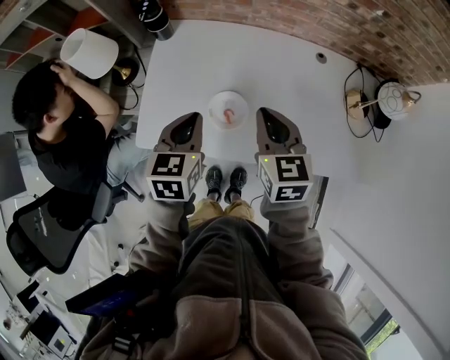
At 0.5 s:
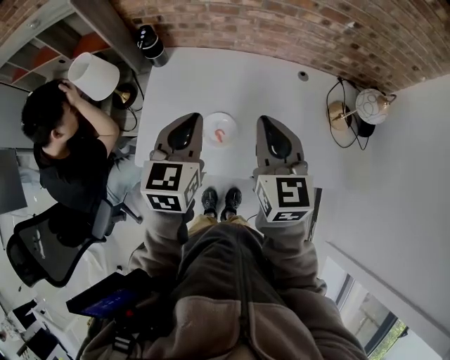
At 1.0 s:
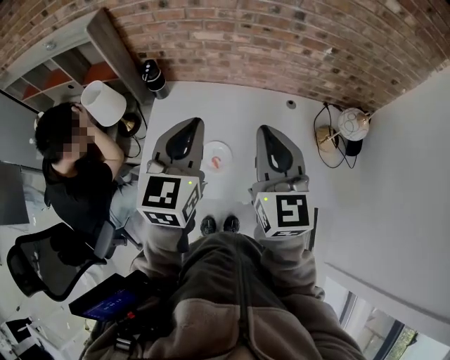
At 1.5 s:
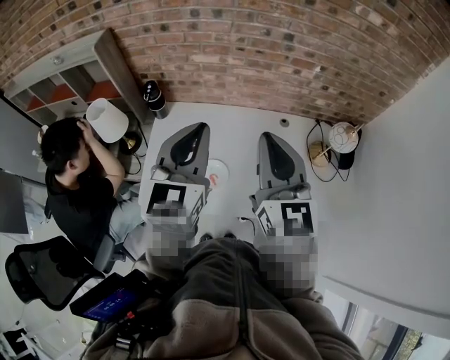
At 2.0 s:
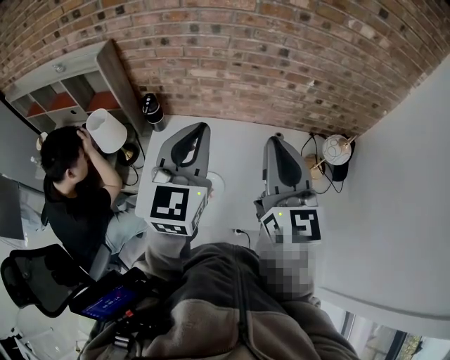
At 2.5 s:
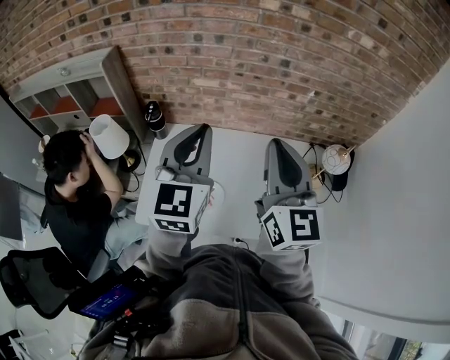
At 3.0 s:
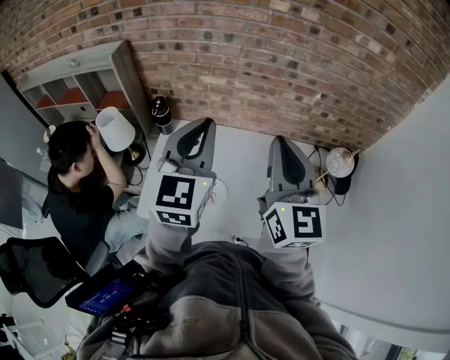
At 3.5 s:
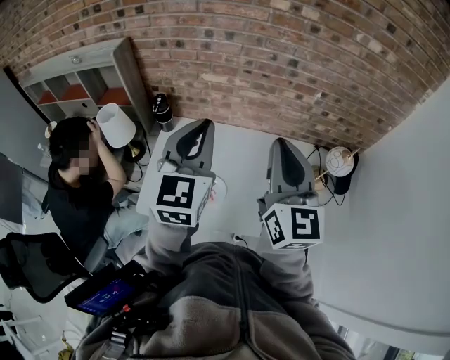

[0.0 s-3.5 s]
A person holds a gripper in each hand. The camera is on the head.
0.0 to 2.0 s: Both grippers move upward, about 30 cm. The right gripper angles its fingers upward, by about 40 degrees, while the left gripper angles its fingers upward, by some 40 degrees.
2.0 to 3.5 s: The grippers make only small movements.

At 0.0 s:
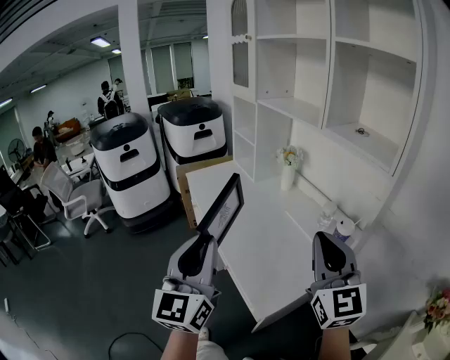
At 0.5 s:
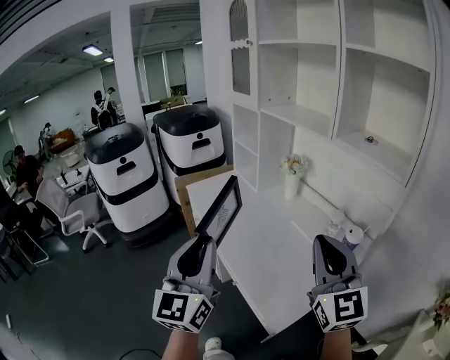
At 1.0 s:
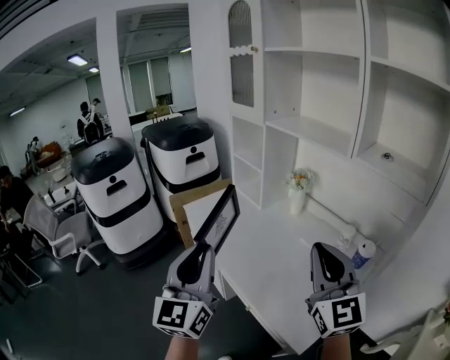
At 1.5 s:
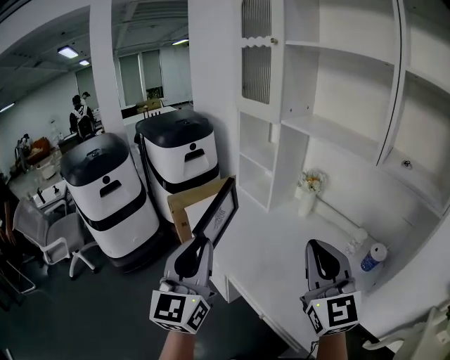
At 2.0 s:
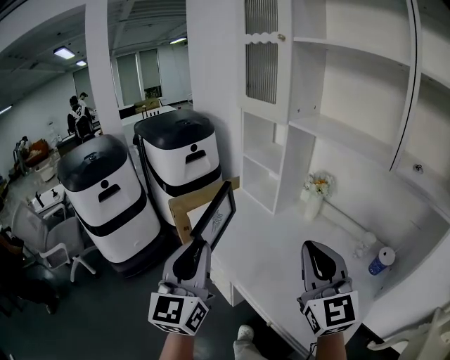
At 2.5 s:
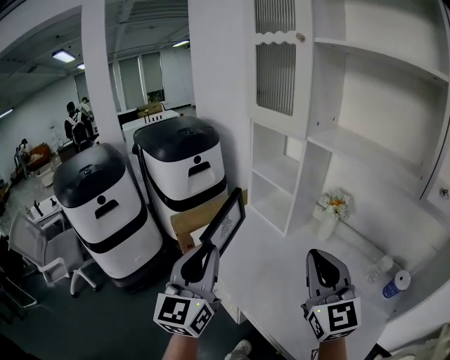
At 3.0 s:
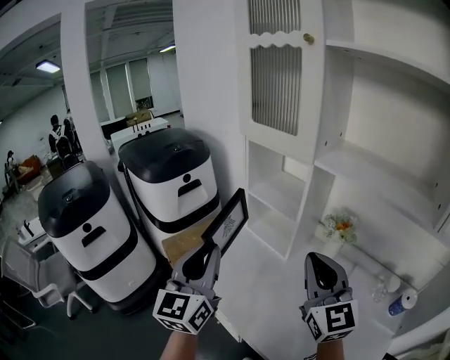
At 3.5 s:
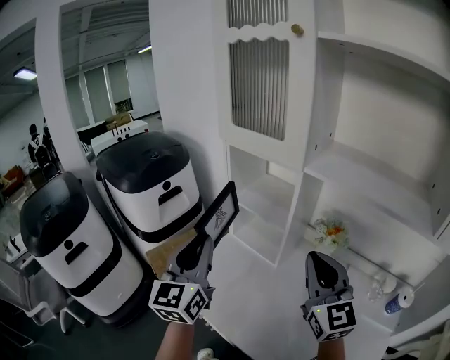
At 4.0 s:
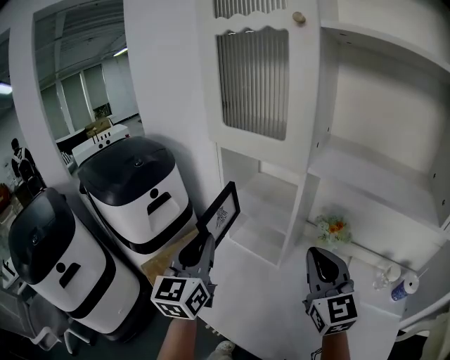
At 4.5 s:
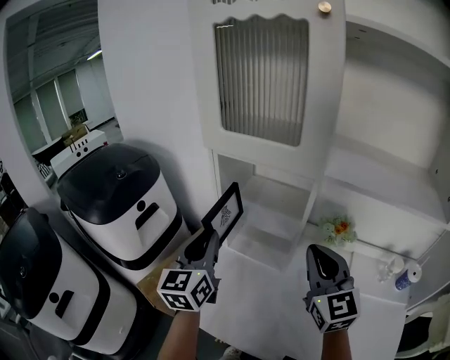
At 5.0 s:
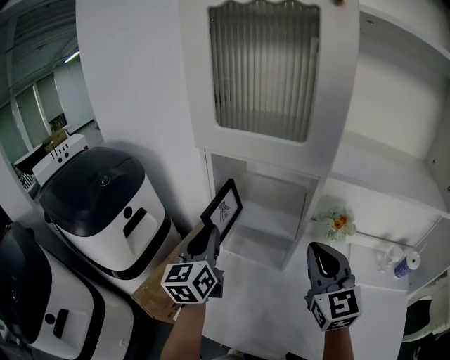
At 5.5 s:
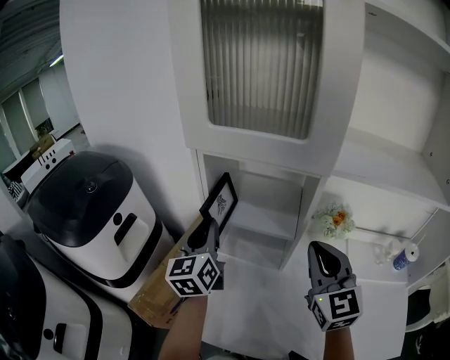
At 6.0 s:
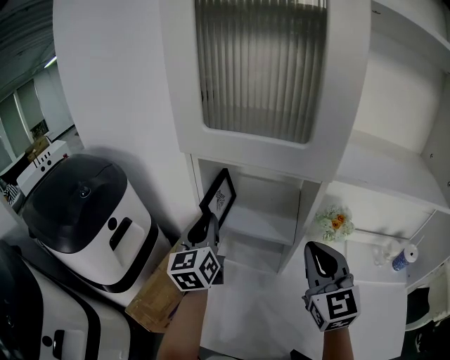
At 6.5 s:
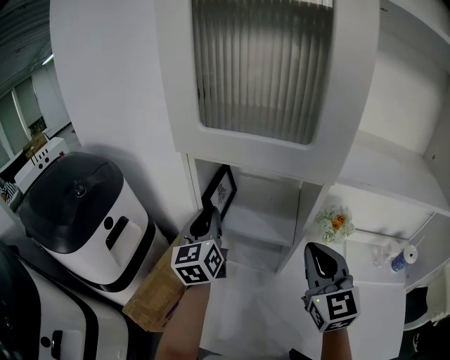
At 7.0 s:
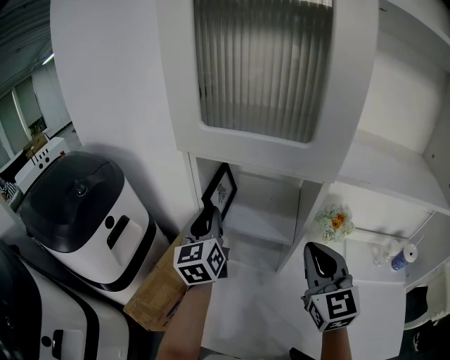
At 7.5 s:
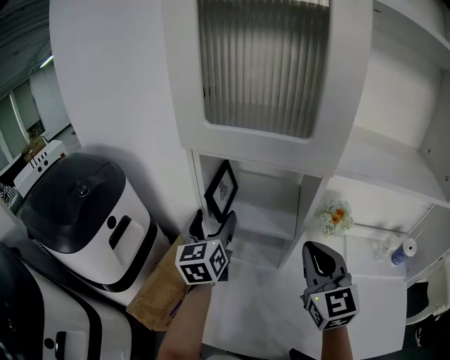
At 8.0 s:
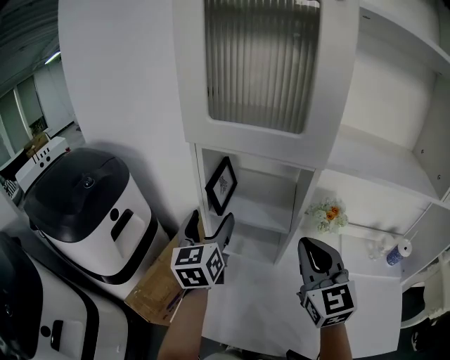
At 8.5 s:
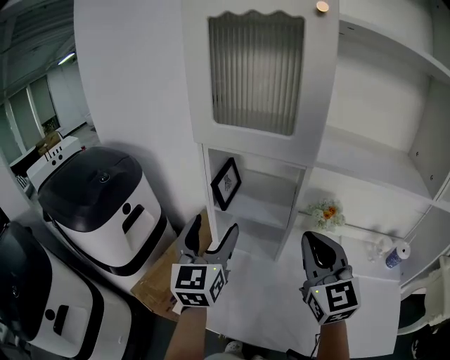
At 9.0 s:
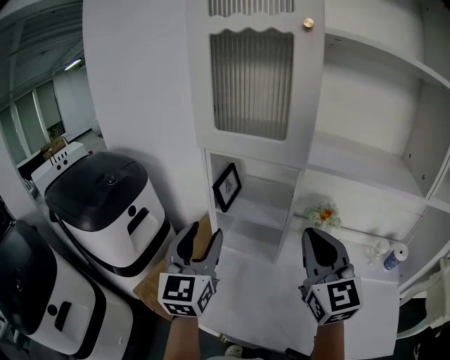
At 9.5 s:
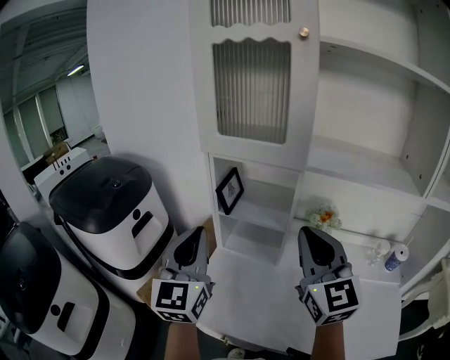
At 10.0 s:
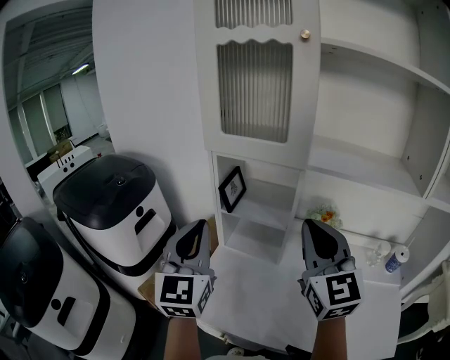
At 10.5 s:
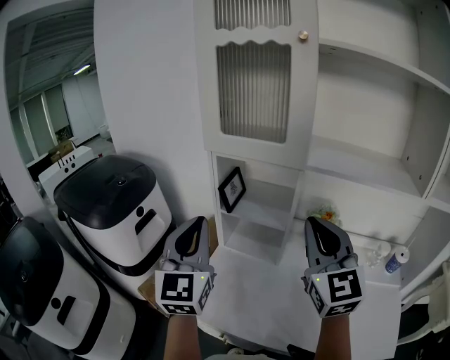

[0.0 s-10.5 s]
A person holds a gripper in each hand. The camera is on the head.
0.0 to 2.0 s: The right gripper shifts some 35 cm to the left and forward. The left gripper moves forward and to the left, roughly 35 cm.
2.0 to 4.0 s: The two grippers go approximately 35 cm forward. The left gripper swivels approximately 20 degrees.
4.0 to 6.5 s: The right gripper heads forward, covering approximately 10 cm. The left gripper travels forward by about 25 cm.
6.5 to 8.5 s: The left gripper shifts approximately 20 cm backward and upward, and opens up. Meanwhile the right gripper moves backward and upward, approximately 10 cm.
8.5 to 10.5 s: The right gripper is displaced upward by some 5 cm. Meanwhile the left gripper is displaced backward and upward by roughly 10 cm, and closes its fingers.

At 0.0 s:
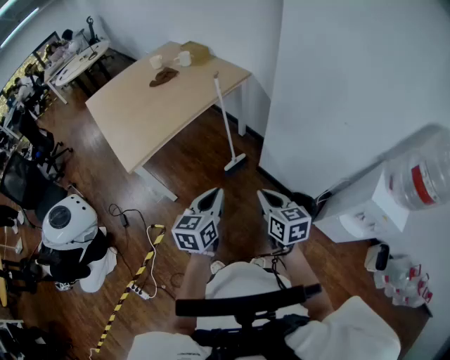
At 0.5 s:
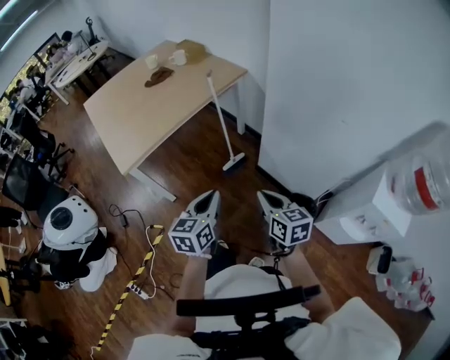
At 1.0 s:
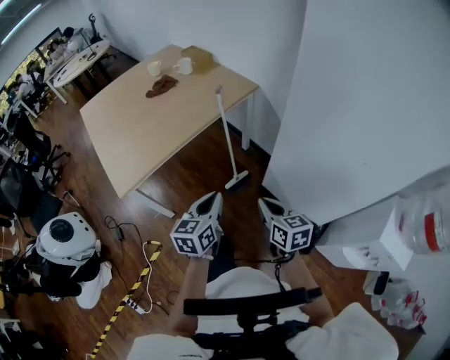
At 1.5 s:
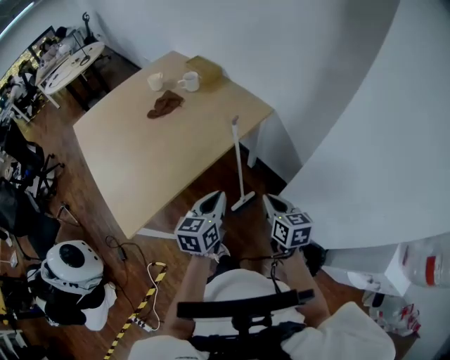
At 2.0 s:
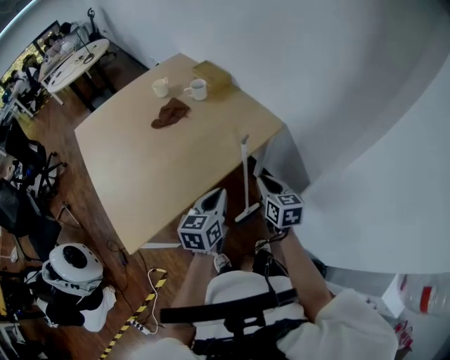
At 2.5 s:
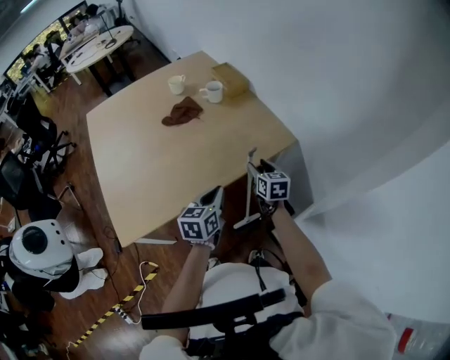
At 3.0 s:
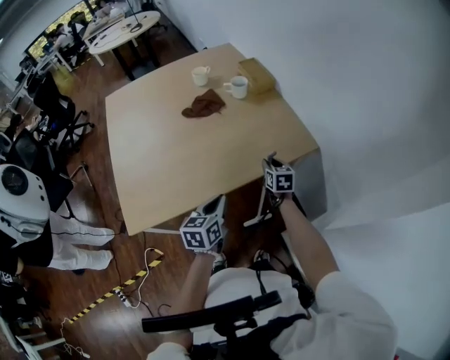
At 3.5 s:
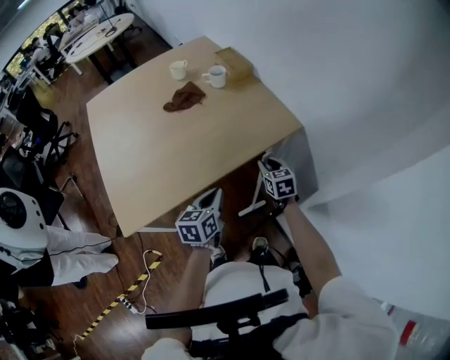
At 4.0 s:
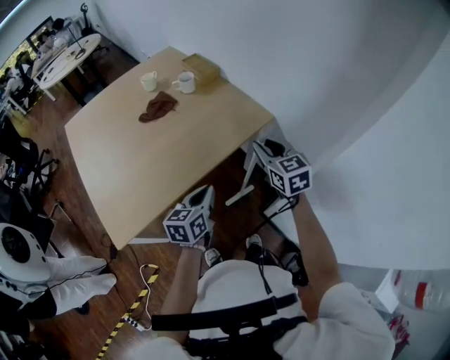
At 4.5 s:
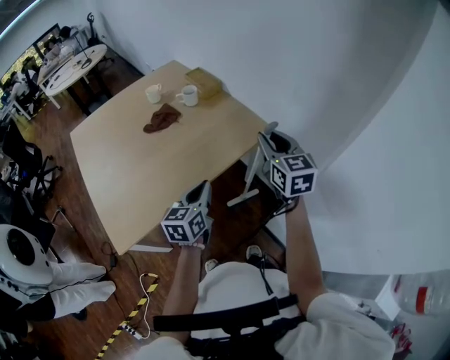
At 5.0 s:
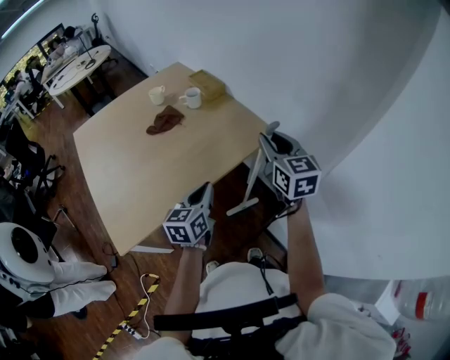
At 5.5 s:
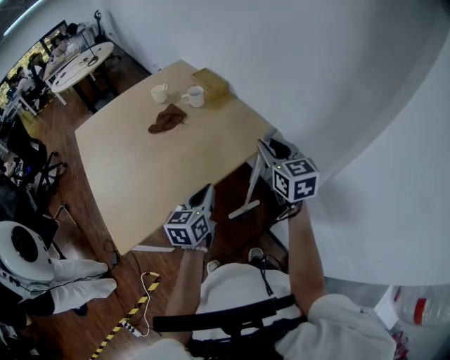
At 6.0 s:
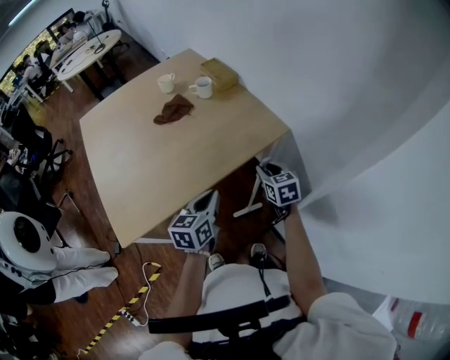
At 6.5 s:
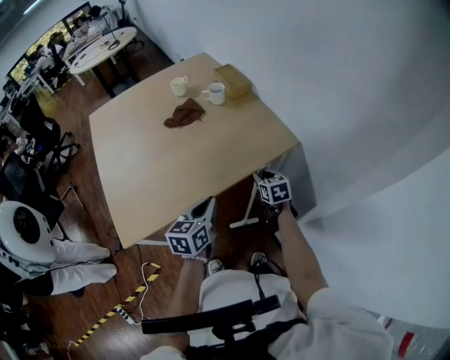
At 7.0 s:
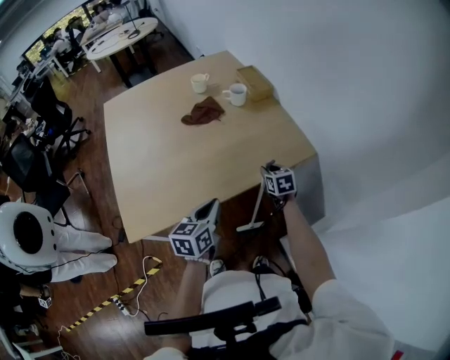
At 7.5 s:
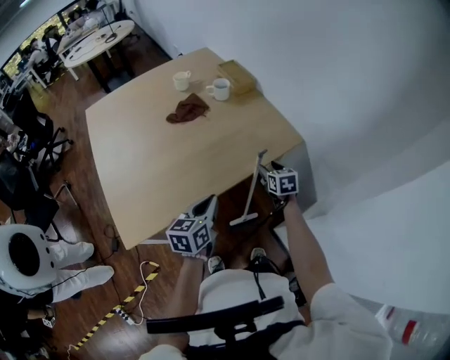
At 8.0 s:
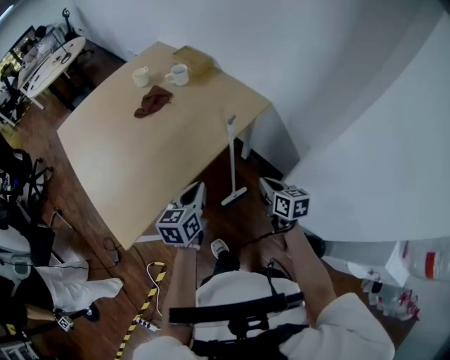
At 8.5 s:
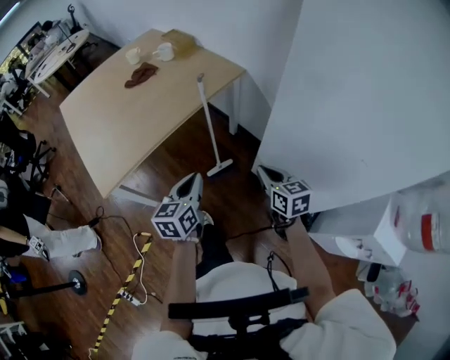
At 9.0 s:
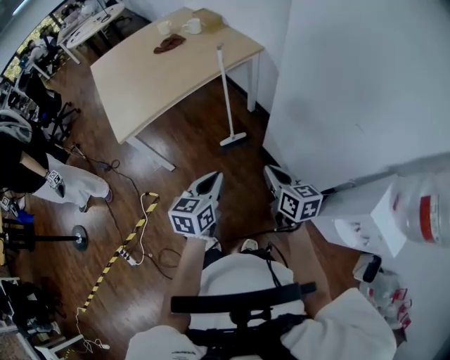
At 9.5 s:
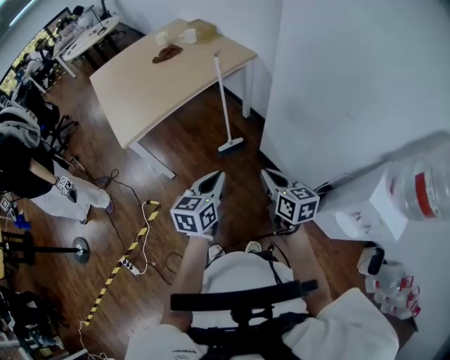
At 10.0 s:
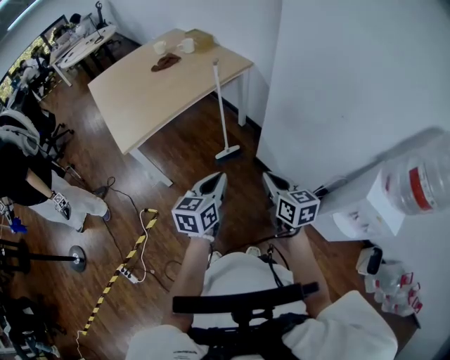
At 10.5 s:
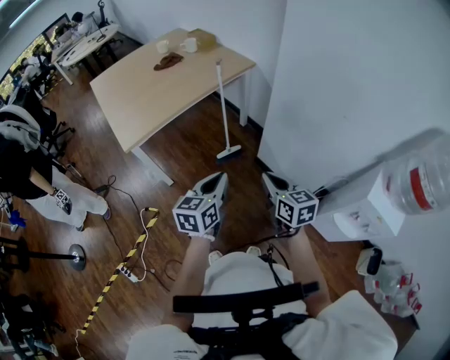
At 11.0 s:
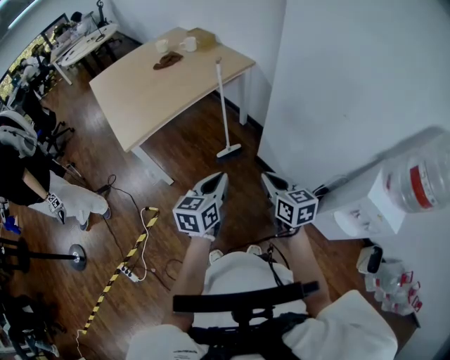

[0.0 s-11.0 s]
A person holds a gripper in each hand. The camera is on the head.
0.0 to 2.0 s: The pair of grippers is taken forward, approximately 50 cm.
2.0 to 3.5 s: The right gripper moves forward and downward, about 15 cm, and opens, then closes again. Meanwhile the left gripper heads downward, covering about 10 cm.
3.5 to 5.5 s: The right gripper is displaced upward by approximately 25 cm, and rotates approximately 20 degrees. Meanwhile the left gripper is displaced upward by roughly 10 cm.
5.5 to 7.5 s: The right gripper is displaced downward by roughly 25 cm, rotates roughly 30 degrees, and opens. The left gripper moves to the left, some 5 cm.
7.5 to 9.0 s: Both grippers are carried backward, approximately 60 cm. The right gripper changes its angle by approximately 30 degrees, and closes up.
9.0 to 11.0 s: The right gripper shifts about 10 cm backward and to the left. Meanwhile the left gripper ends up approximately 5 cm from where it was.

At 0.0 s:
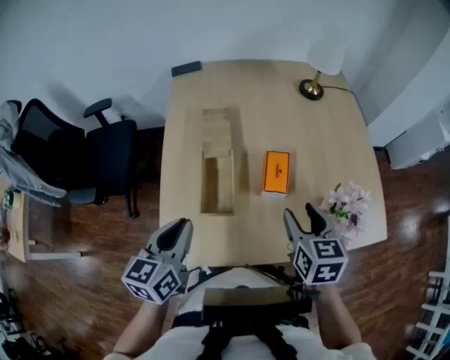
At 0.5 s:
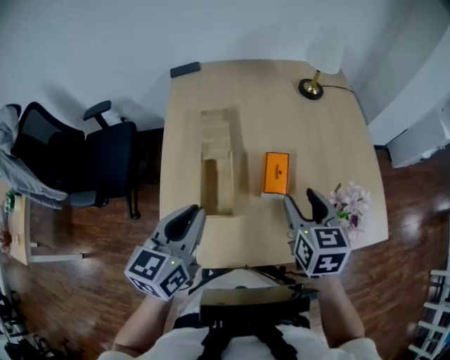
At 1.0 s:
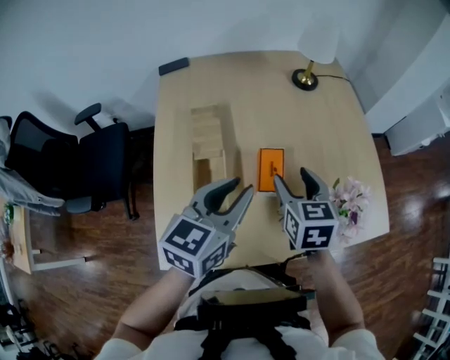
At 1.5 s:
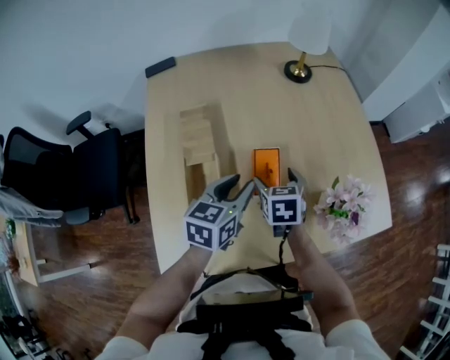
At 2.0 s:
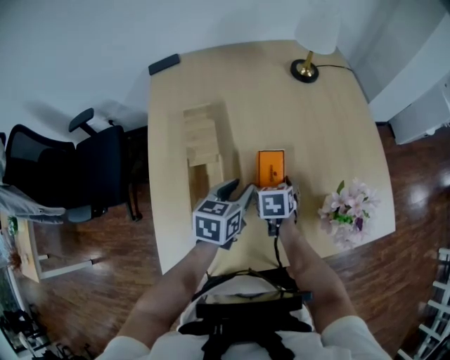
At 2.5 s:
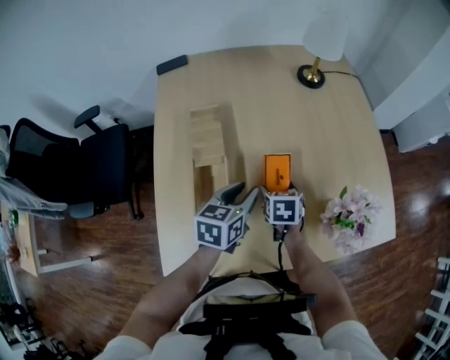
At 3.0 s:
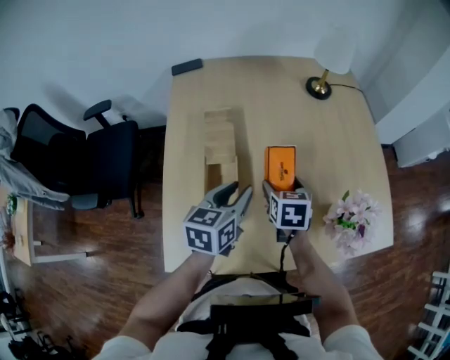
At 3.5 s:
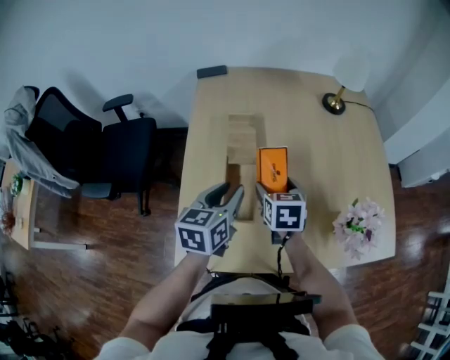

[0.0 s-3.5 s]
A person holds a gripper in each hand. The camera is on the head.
0.0 to 2.0 s: The right gripper heads downward and forward, covering about 25 cm, turns by approximately 20 degrees, and opens up. Meanwhile the left gripper goes about 25 cm forward, to the right and downward, and opens.
2.0 to 3.5 s: The right gripper is displaced upward and to the left by about 15 cm, while the left gripper goes some 15 cm to the left, upward and backward.
